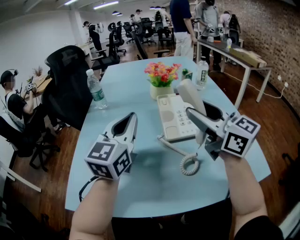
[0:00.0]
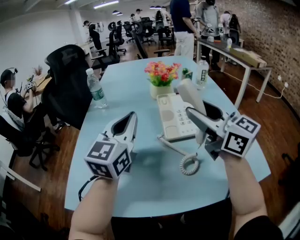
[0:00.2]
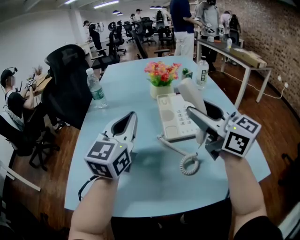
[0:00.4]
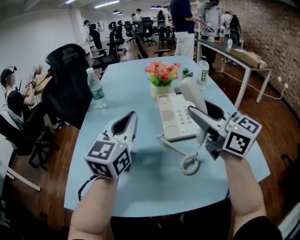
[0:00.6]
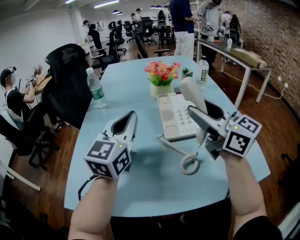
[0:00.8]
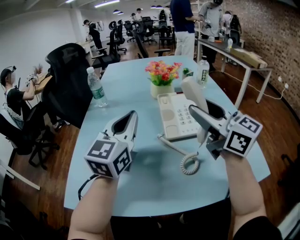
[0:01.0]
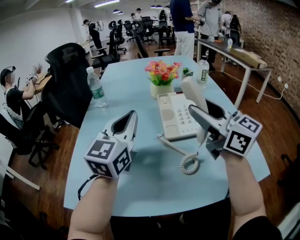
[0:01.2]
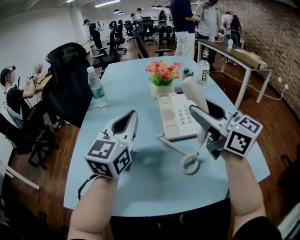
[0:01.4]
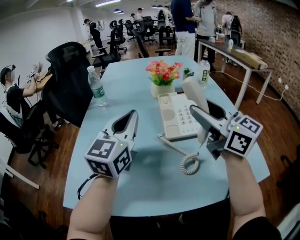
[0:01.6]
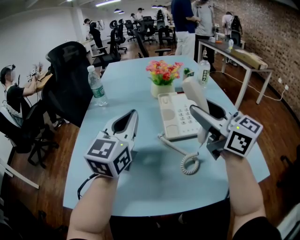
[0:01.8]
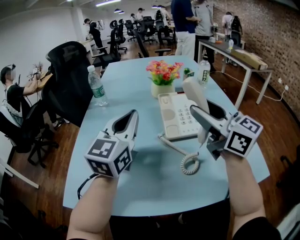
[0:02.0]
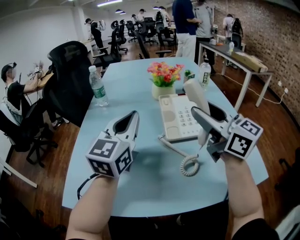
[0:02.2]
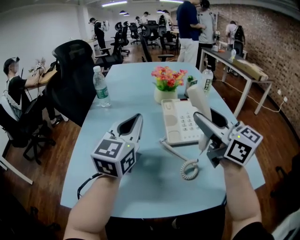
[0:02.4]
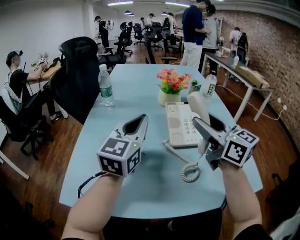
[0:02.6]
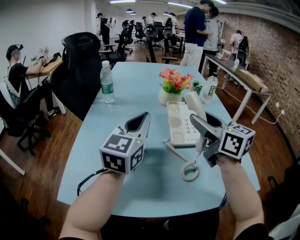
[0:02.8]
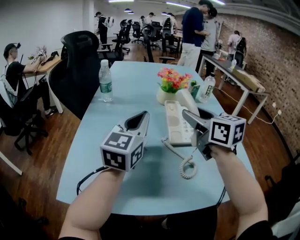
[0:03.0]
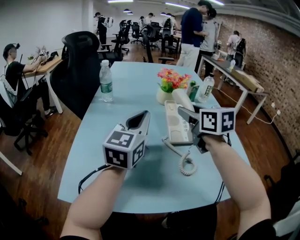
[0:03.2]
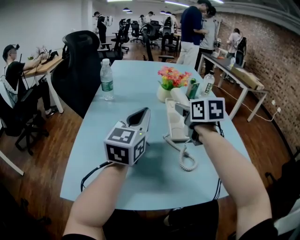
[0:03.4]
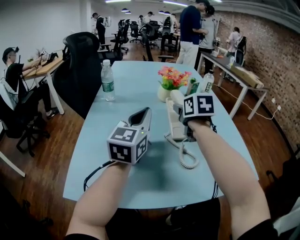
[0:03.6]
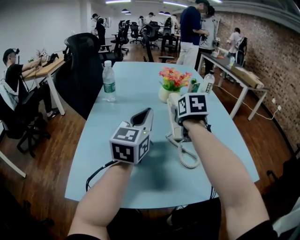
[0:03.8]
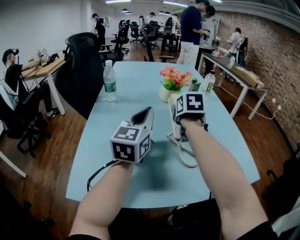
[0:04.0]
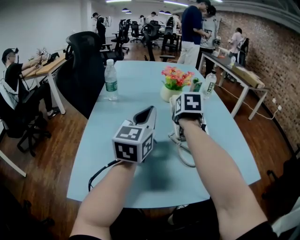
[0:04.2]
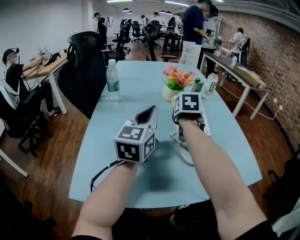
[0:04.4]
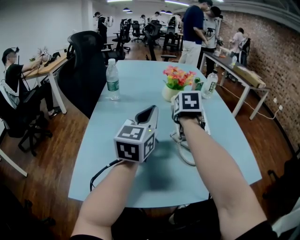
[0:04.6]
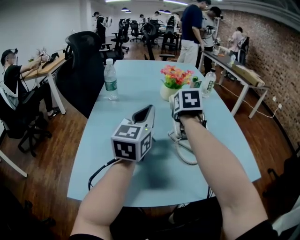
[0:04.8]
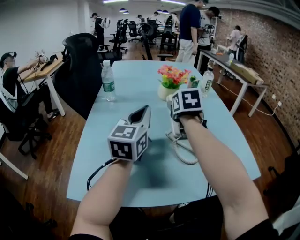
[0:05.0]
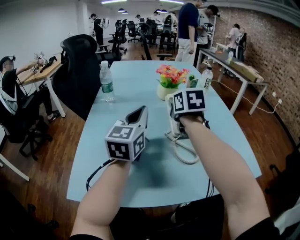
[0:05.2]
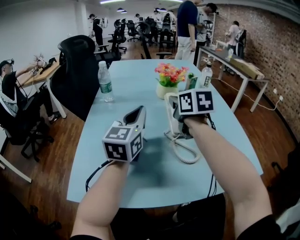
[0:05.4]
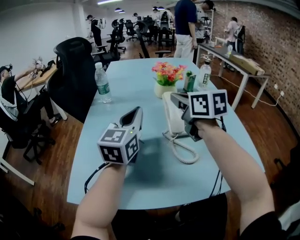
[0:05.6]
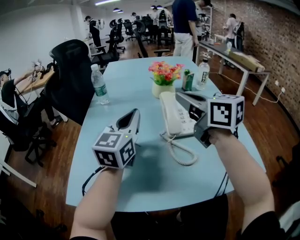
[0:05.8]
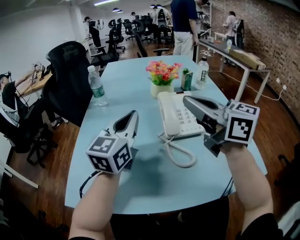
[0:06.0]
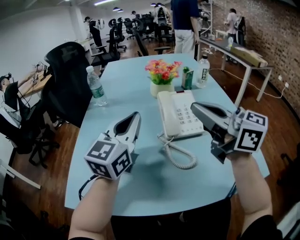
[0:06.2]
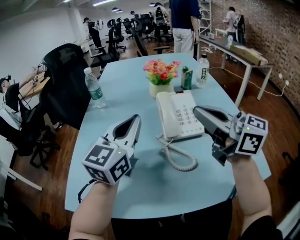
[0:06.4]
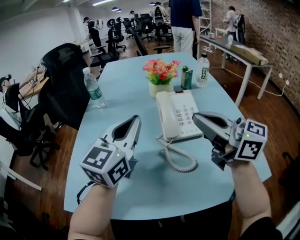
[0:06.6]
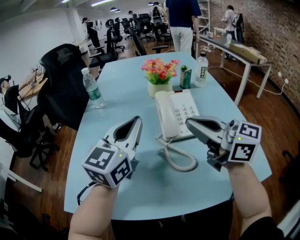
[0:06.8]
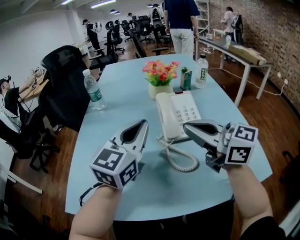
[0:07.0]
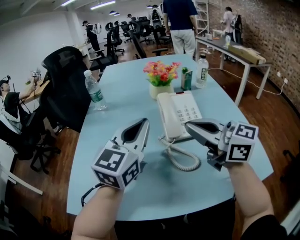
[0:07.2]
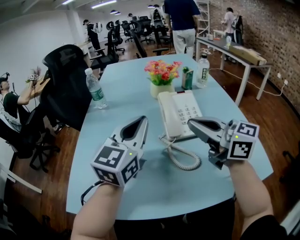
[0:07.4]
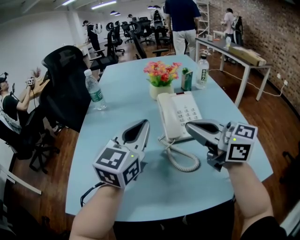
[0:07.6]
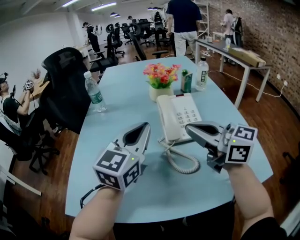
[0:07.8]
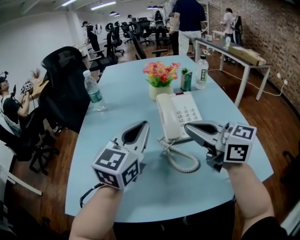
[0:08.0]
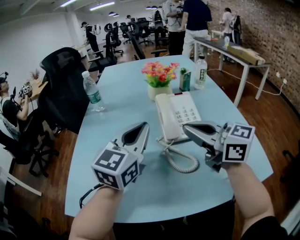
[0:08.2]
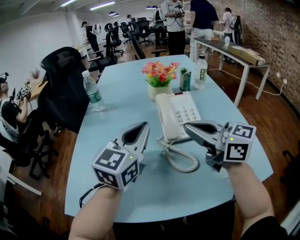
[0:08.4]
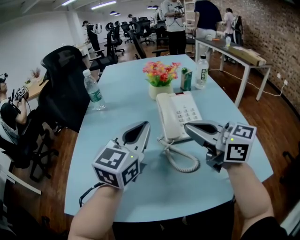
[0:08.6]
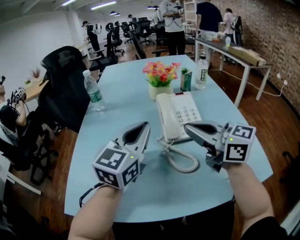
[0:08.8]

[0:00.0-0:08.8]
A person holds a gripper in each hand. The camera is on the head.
0:00.0 to 0:01.4: The grippers move only a little.
0:01.4 to 0:03.0: The right gripper heads forward, covering some 5 cm, and turns by about 20 degrees.
0:03.0 to 0:04.4: The right gripper travels downward and forward by roughly 15 cm, and swivels about 40 degrees.
0:04.4 to 0:05.8: The right gripper travels upward and backward by some 15 cm, points its fingers approximately 30 degrees further upward, and closes.
0:05.8 to 0:07.4: The right gripper goes some 10 cm backward and downward. Meanwhile the left gripper shifts by some 5 cm.
0:07.4 to 0:08.8: The grippers stay close to where they were, moving slightly.

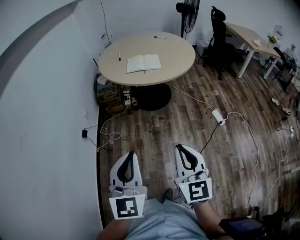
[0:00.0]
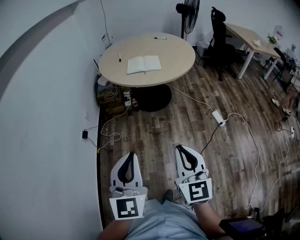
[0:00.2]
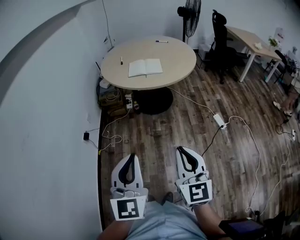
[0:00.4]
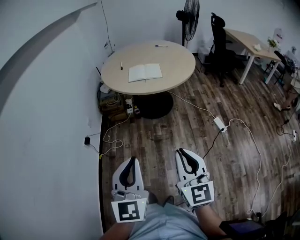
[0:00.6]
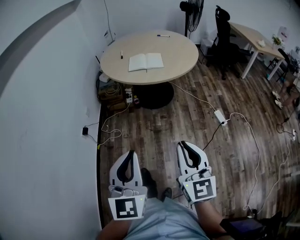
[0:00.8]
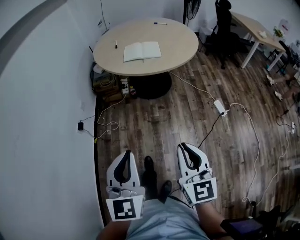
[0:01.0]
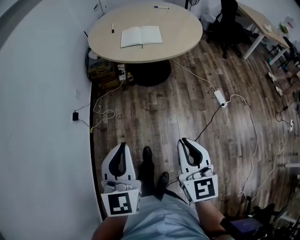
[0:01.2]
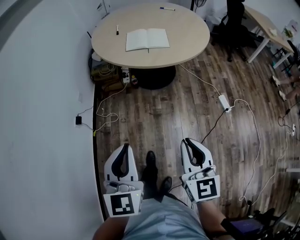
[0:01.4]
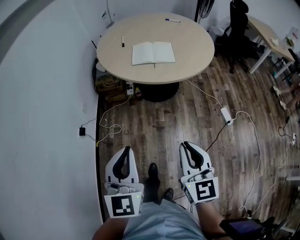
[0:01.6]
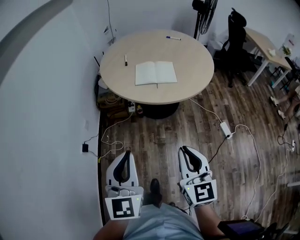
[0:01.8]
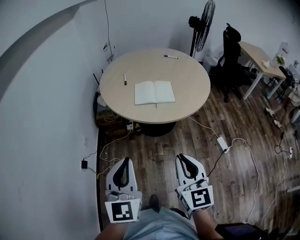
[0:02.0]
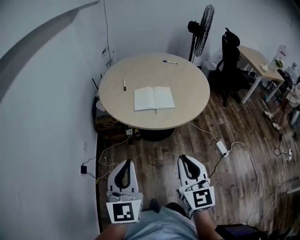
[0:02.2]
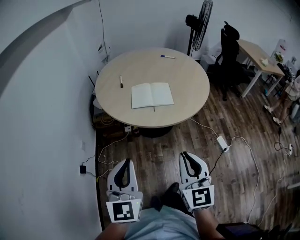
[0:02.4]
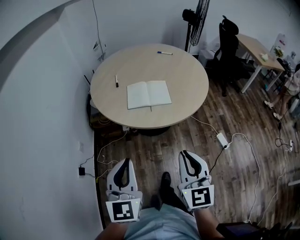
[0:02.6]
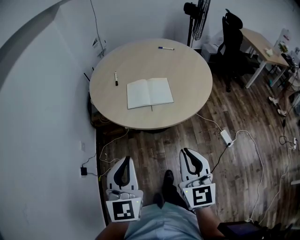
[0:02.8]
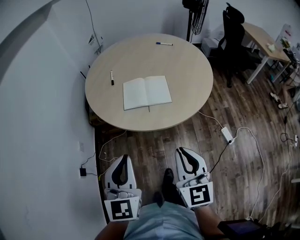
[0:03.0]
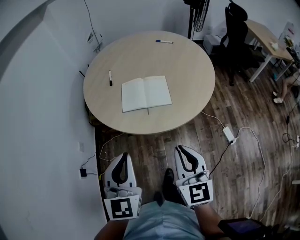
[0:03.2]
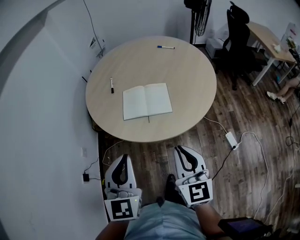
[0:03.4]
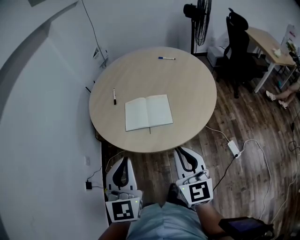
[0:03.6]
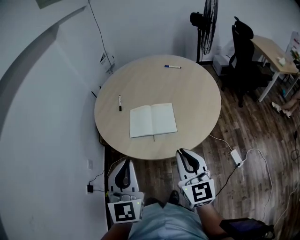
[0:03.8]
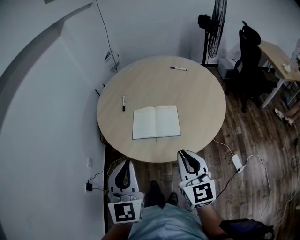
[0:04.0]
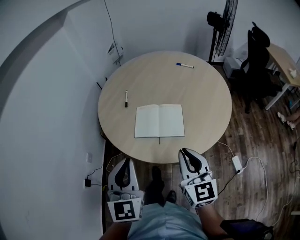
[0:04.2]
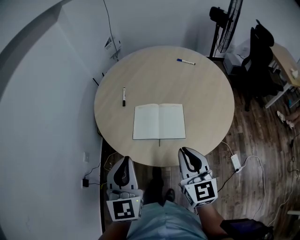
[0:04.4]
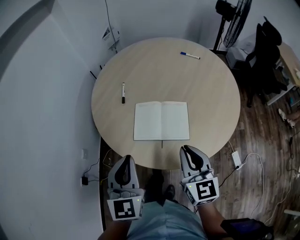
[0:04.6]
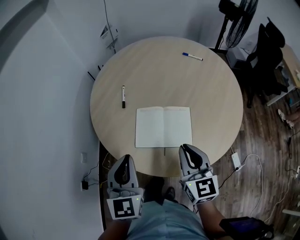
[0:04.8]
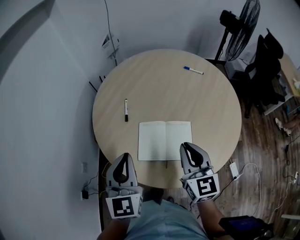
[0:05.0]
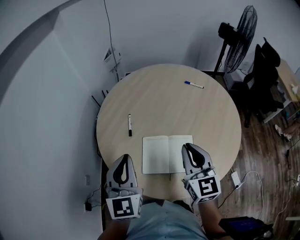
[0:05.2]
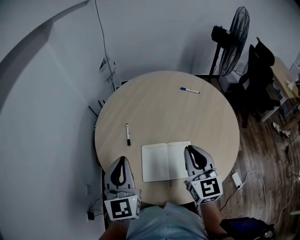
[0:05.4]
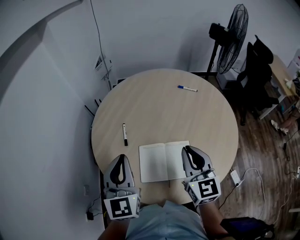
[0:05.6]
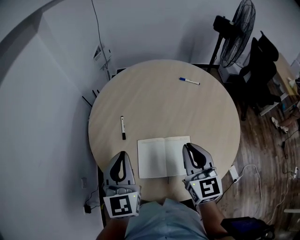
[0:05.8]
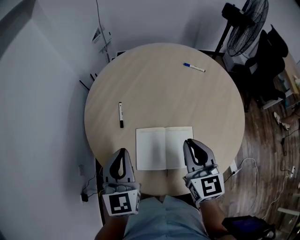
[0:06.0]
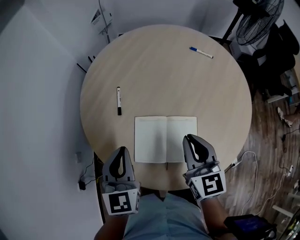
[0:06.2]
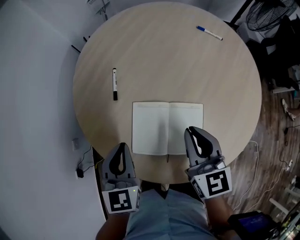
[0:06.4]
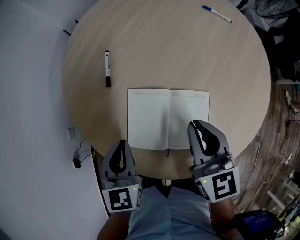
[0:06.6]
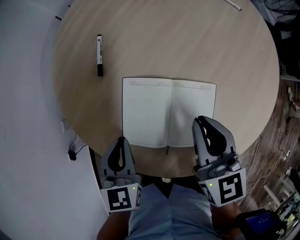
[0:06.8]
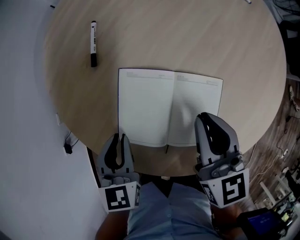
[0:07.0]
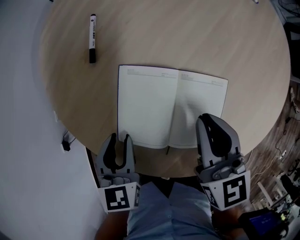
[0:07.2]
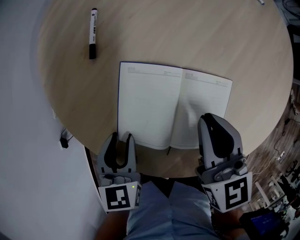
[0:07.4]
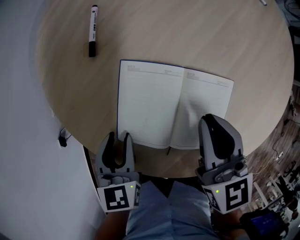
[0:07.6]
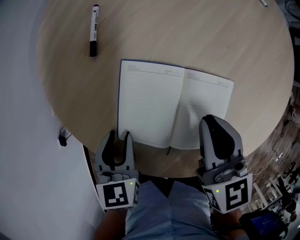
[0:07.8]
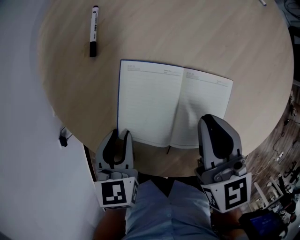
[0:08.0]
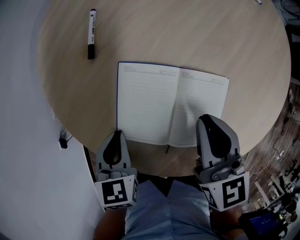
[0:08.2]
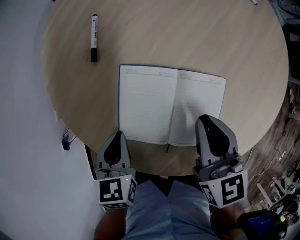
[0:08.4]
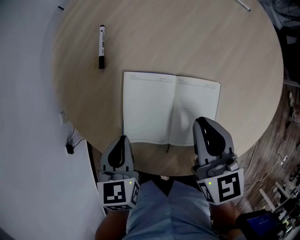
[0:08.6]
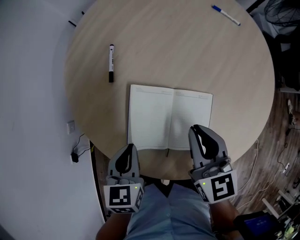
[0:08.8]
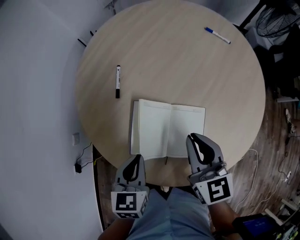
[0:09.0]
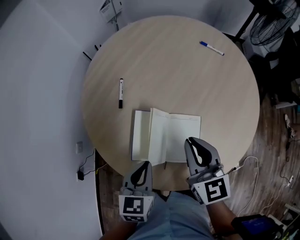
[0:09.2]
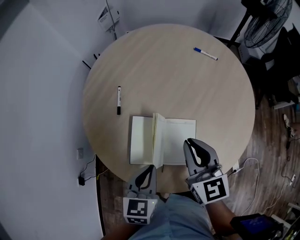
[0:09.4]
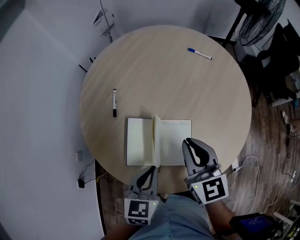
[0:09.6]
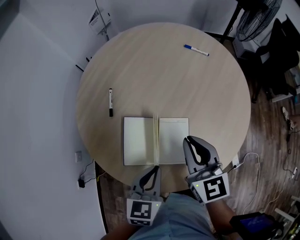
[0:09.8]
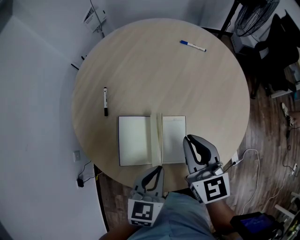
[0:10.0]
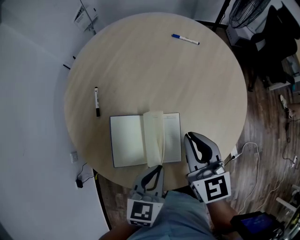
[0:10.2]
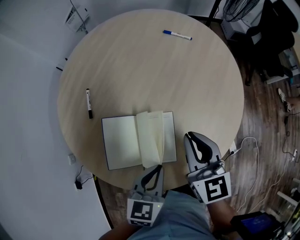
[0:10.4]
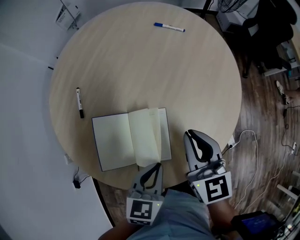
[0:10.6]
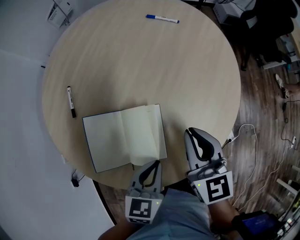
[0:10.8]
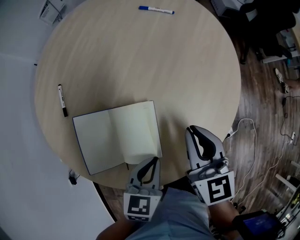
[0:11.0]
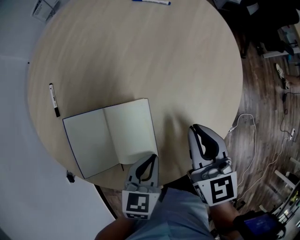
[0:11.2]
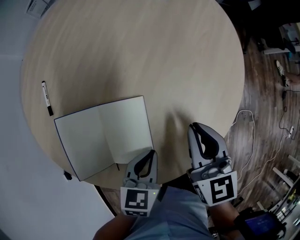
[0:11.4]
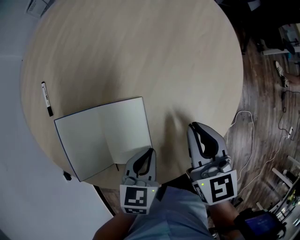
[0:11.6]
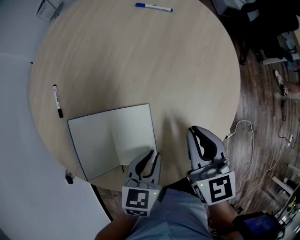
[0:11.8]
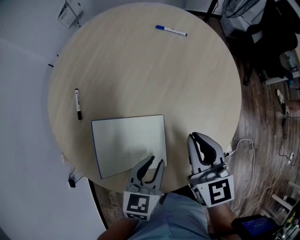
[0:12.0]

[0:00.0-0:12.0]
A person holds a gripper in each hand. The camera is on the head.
0:00.0 to 0:01.6: The grippers both shift forward by about 20 cm.
0:01.6 to 0:03.0: Both grippers travel together forward, approximately 25 cm.
0:03.0 to 0:04.4: Both grippers travel together forward, approximately 20 cm.
0:04.4 to 0:06.0: The grippers both shift forward by approximately 25 cm.
0:06.0 to 0:07.6: The left gripper is displaced downward by some 30 cm, tips its fingers downward by some 30 degrees, and opens its fingers, while the right gripper goes approximately 20 cm downward, and rotates roughly 20 degrees.
0:07.6 to 0:09.0: The right gripper moves upward, roughly 10 cm. Meanwhile the left gripper goes approximately 15 cm upward and to the right, and closes its fingers.
0:09.0 to 0:10.4: Both grippers move to the right, roughly 15 cm. The left gripper swivels roughly 20 degrees.
0:10.4 to 0:12.0: The right gripper goes approximately 5 cm to the right, and goes downward and returns, approximately 10 cm each way. Meanwhile the left gripper moves roughly 15 cm downward and comes back, and opens its fingers.

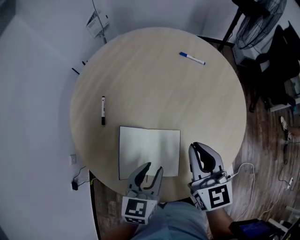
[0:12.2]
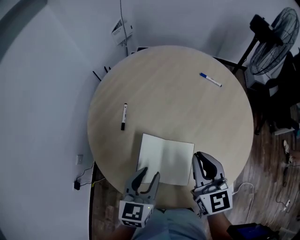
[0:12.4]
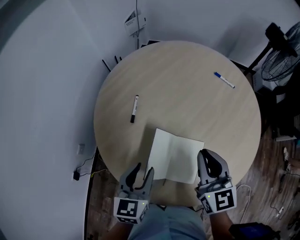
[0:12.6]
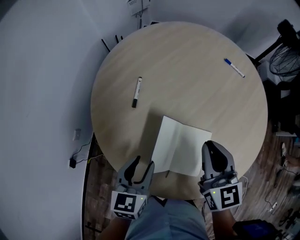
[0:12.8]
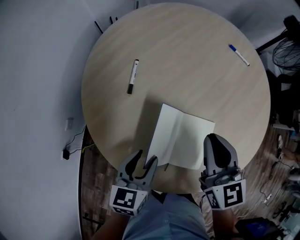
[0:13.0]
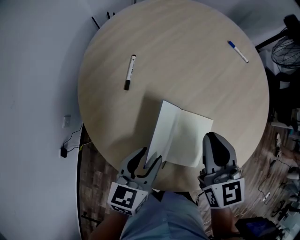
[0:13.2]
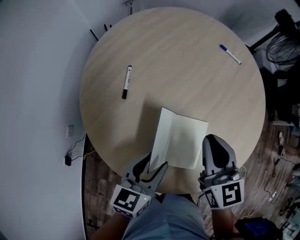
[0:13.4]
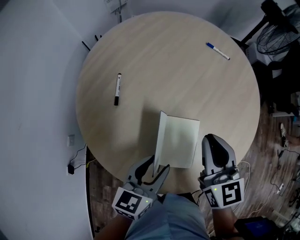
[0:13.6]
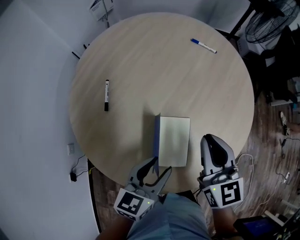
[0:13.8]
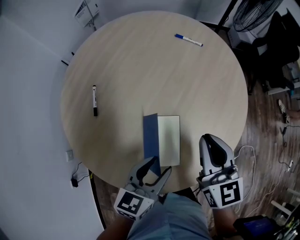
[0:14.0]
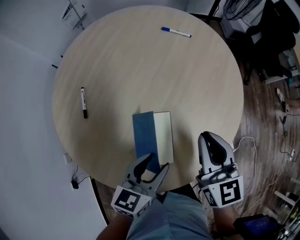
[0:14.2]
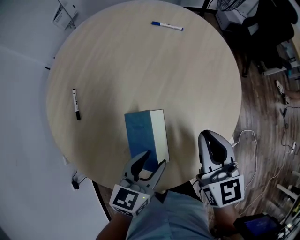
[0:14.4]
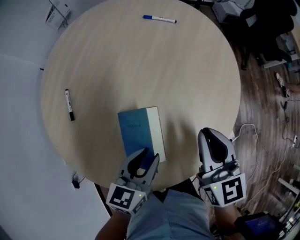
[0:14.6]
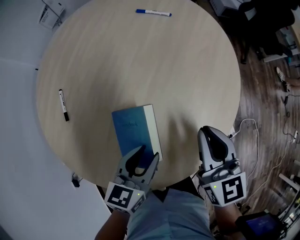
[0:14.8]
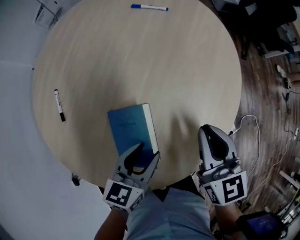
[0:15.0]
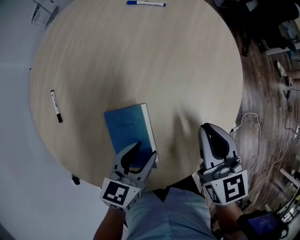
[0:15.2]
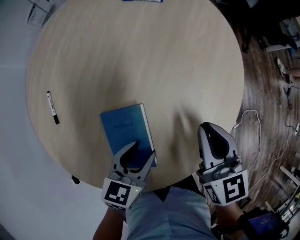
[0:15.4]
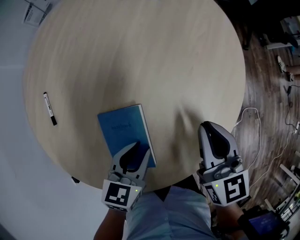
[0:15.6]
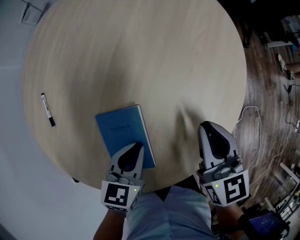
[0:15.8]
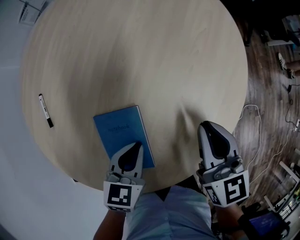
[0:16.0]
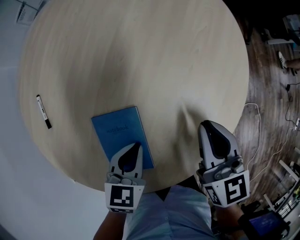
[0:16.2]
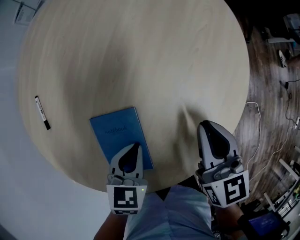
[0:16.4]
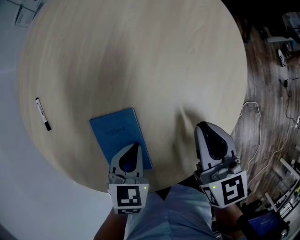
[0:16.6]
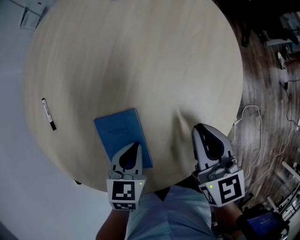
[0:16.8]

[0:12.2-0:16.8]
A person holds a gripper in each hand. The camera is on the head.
0:12.2 to 0:13.8: The right gripper moves about 15 cm to the left and comes back. The left gripper travels to the left and back again, roughly 20 cm each way.
0:13.8 to 0:15.2: The right gripper is displaced to the right and downward by approximately 20 cm, while the left gripper heads to the right, downward and forward, covering roughly 15 cm.
0:15.2 to 0:16.8: The left gripper goes roughly 5 cm downward, swivels some 20 degrees, and closes.
